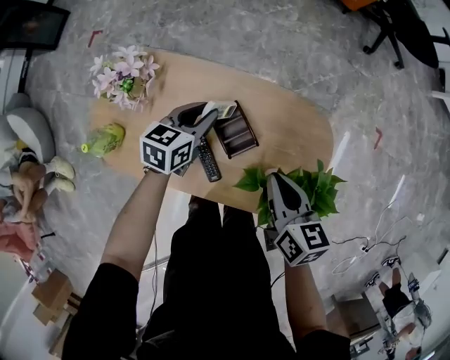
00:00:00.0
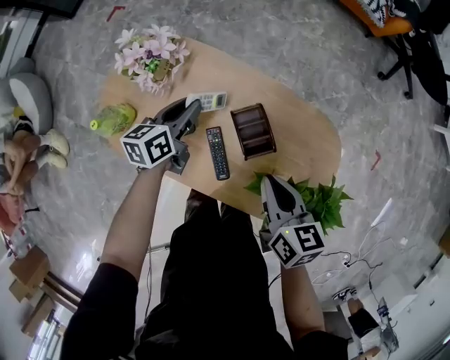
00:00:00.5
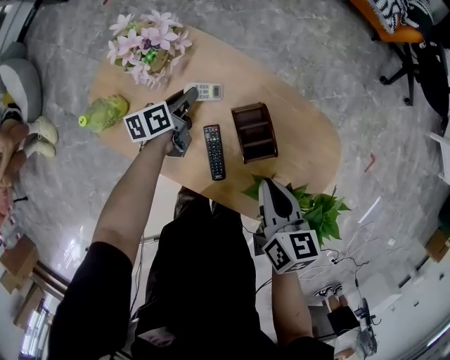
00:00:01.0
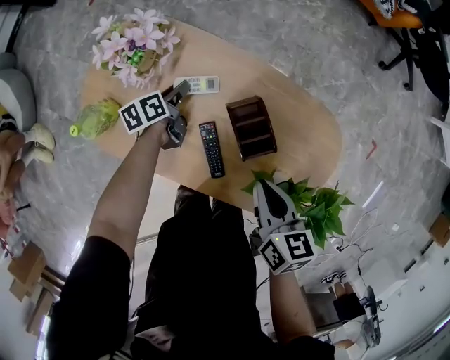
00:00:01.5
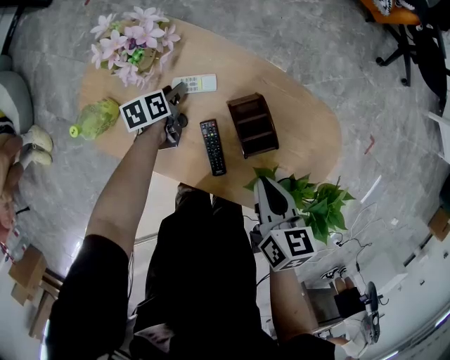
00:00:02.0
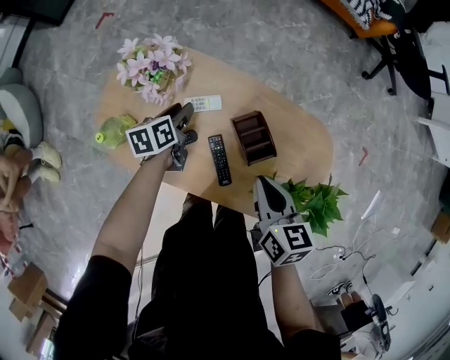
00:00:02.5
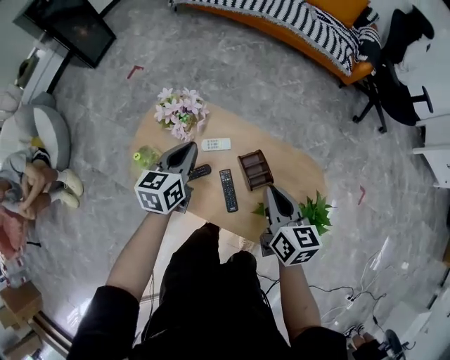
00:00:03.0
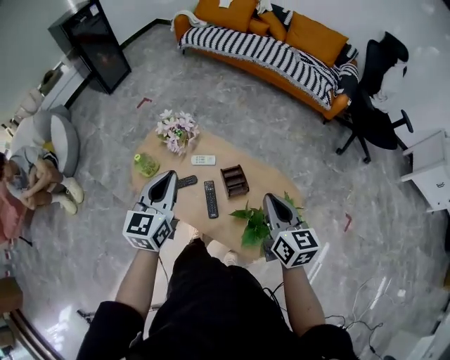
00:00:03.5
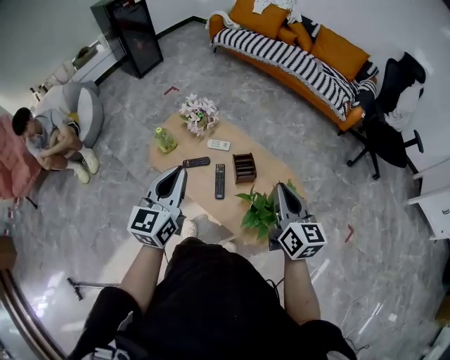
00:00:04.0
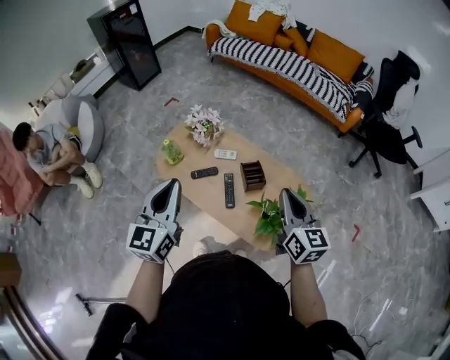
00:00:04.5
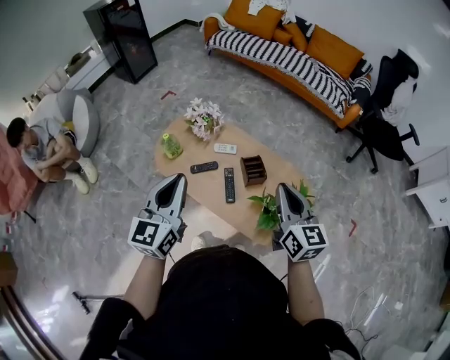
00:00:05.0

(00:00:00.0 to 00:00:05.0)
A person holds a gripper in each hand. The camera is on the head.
00:00:00.0 - 00:00:02.5: The left gripper moves to the left, about 20 cm, and swivels about 40 degrees, while the right gripper heads to the left, covering some 10 cm.
00:00:02.5 - 00:00:05.0: The left gripper travels upward and backward by about 50 cm, points its fingers about 40 degrees further upward, and closes. Meanwhile the right gripper travels upward and backward by roughly 30 cm, and points its fingers roughly 30 degrees further upward.

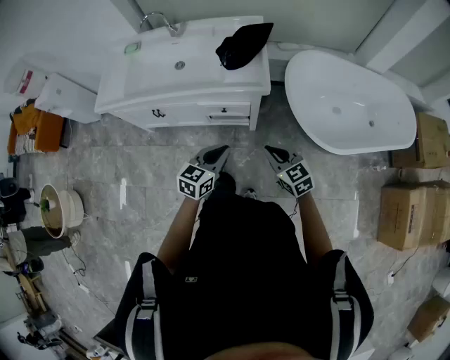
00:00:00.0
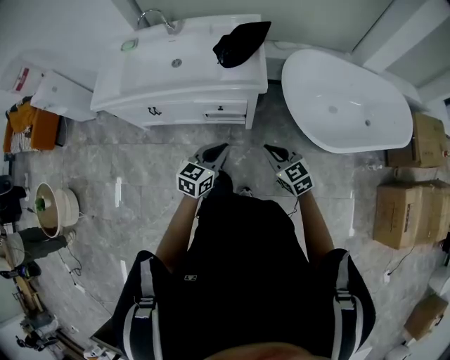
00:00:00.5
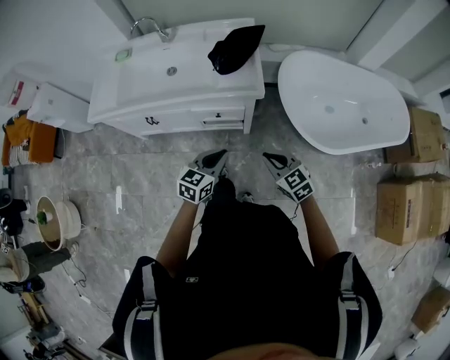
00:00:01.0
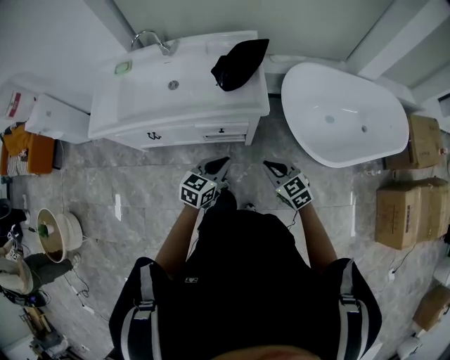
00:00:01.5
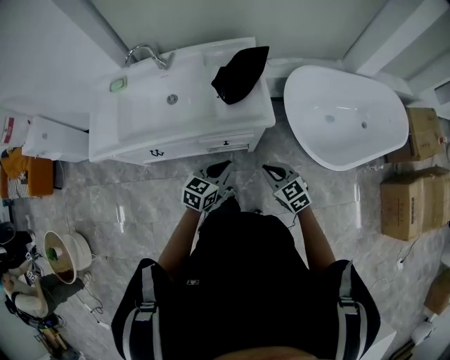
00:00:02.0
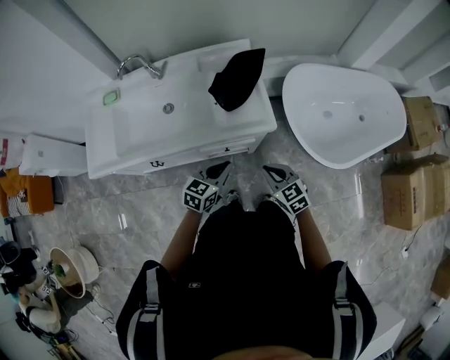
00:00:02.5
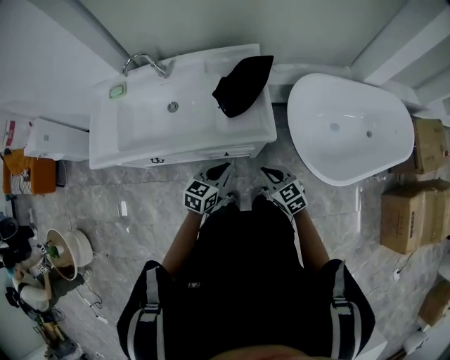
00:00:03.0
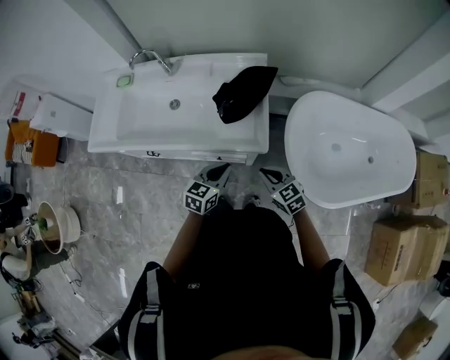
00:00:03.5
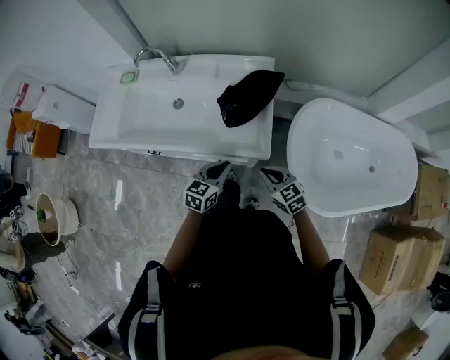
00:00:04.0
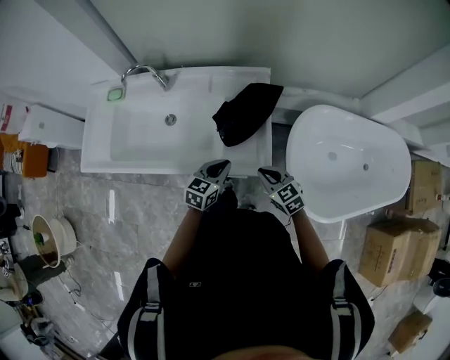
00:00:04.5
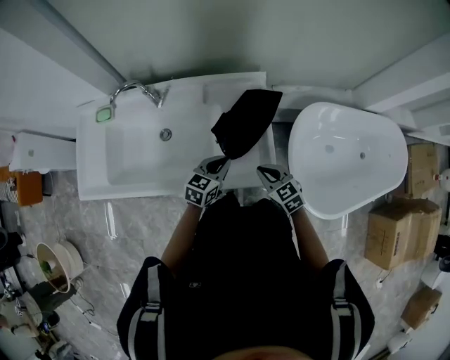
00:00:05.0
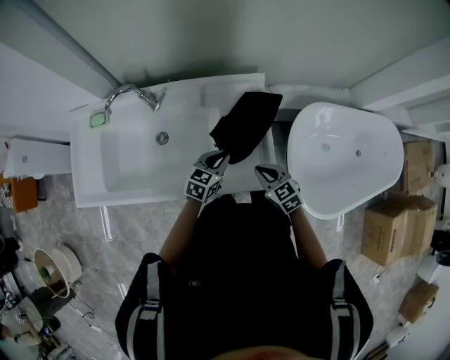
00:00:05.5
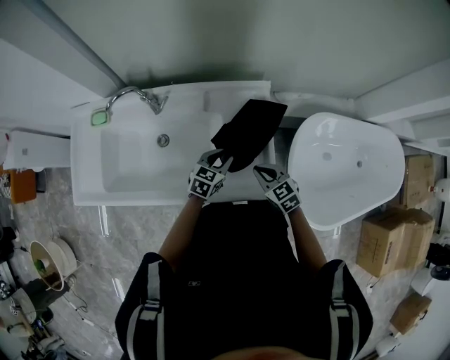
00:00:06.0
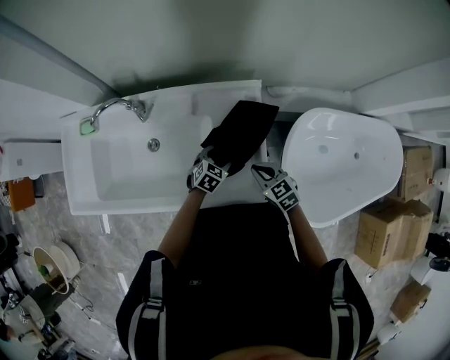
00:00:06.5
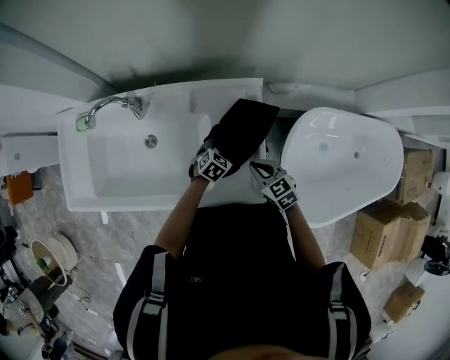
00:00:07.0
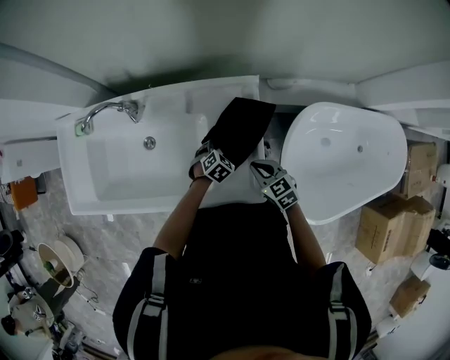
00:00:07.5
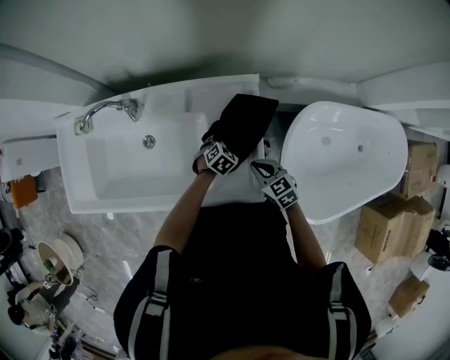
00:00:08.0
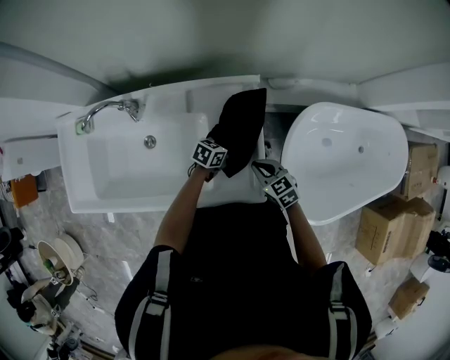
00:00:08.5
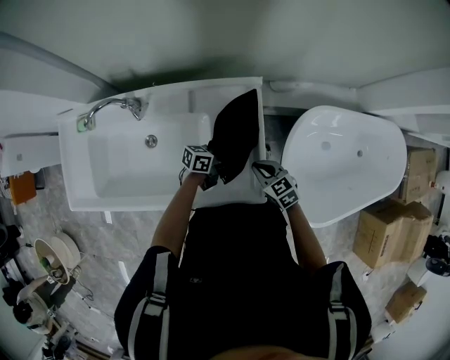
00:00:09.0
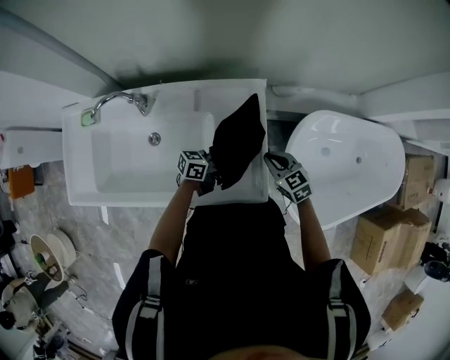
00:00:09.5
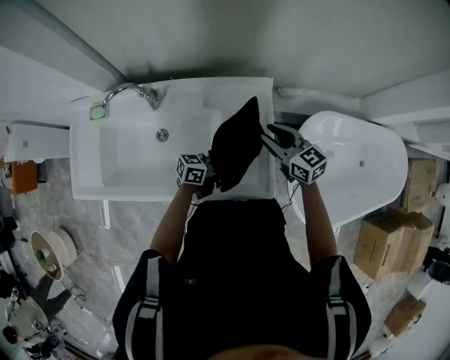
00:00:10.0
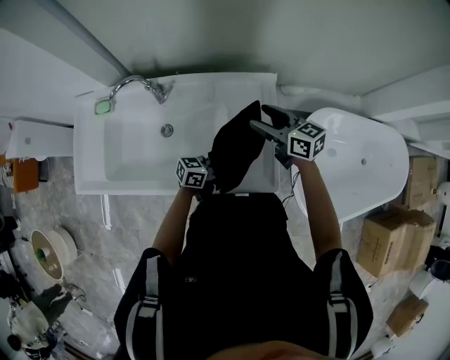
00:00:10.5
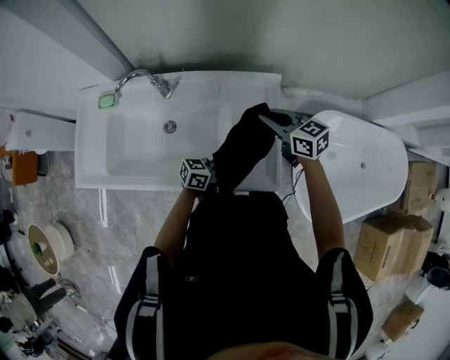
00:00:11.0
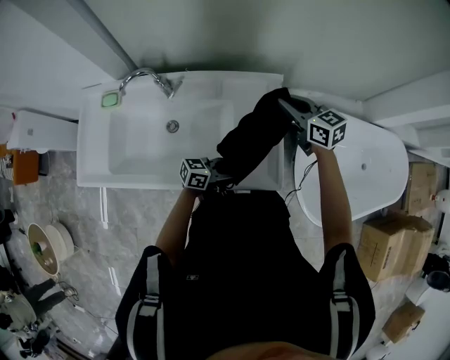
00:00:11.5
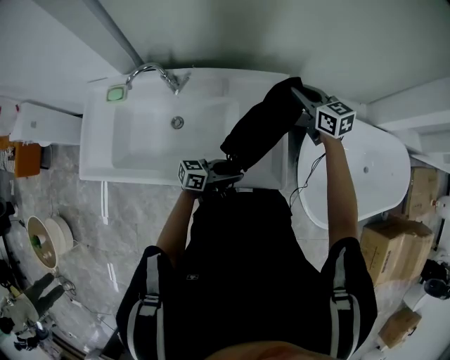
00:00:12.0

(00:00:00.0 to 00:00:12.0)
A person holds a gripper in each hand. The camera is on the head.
00:00:00.0 - 00:00:02.0: Both grippers travel together forward and to the left, some 15 cm.
00:00:02.0 - 00:00:04.0: The grippers both shift forward and to the right by about 15 cm.
00:00:04.0 - 00:00:06.0: Both grippers move forward, approximately 20 cm.
00:00:06.0 - 00:00:08.0: The right gripper ends up some 5 cm from where it was, while the left gripper is displaced downward, to the right and forward by some 15 cm, rotates some 30 degrees, and opens its fingers.
00:00:08.0 - 00:00:10.0: The grippers both shift upward by roughly 15 cm. The right gripper swivels approximately 20 degrees, and opens its fingers. The left gripper points its fingers approximately 50 degrees further upward.
00:00:10.0 - 00:00:12.0: The left gripper changes place by some 10 cm; the right gripper moves approximately 10 cm, and closes its fingers.

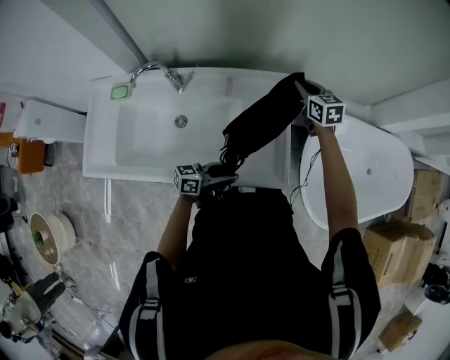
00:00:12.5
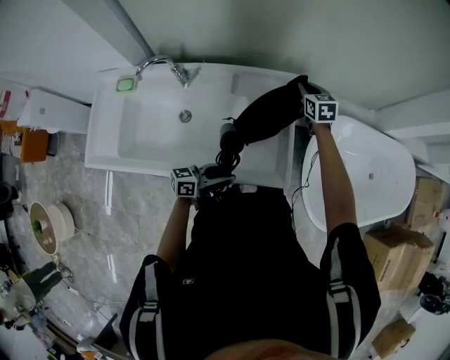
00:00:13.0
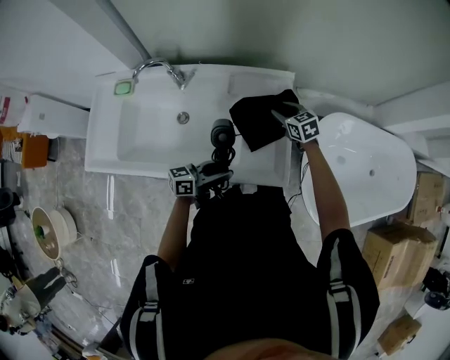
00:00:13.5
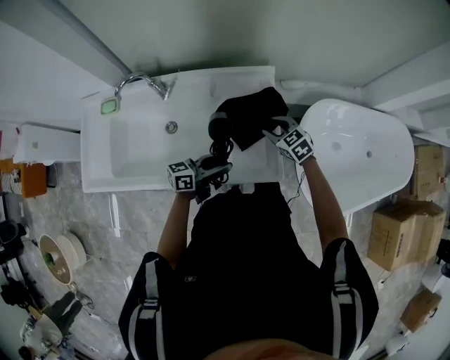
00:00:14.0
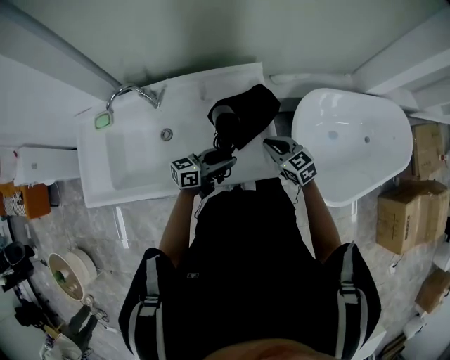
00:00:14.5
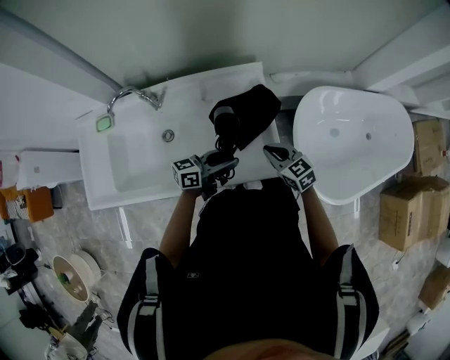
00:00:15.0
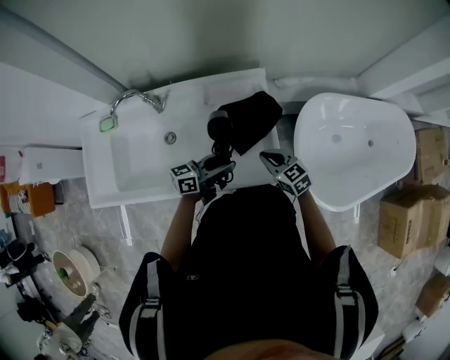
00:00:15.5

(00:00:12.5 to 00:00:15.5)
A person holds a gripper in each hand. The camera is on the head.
00:00:12.5 - 00:00:14.0: The right gripper goes roughly 20 cm backward and downward, turns by roughly 20 degrees, and opens.
00:00:14.0 - 00:00:15.5: The right gripper shifts roughly 10 cm backward, and closes its fingers.

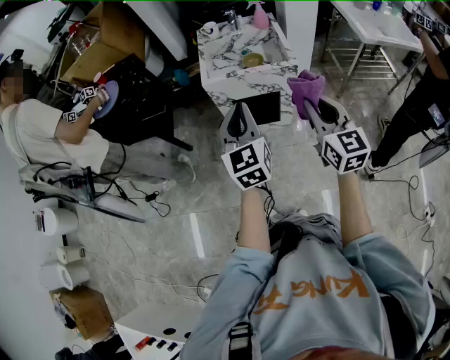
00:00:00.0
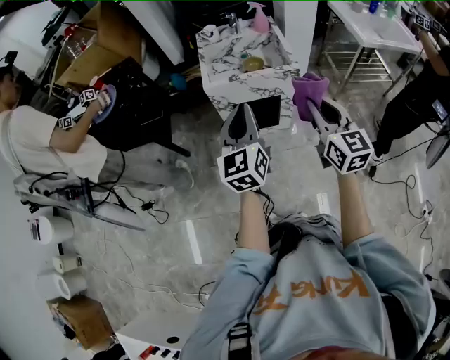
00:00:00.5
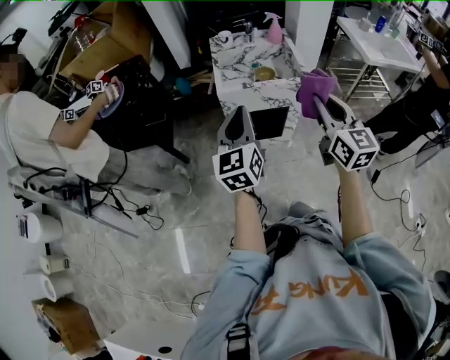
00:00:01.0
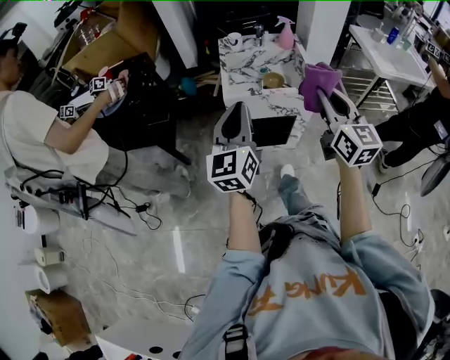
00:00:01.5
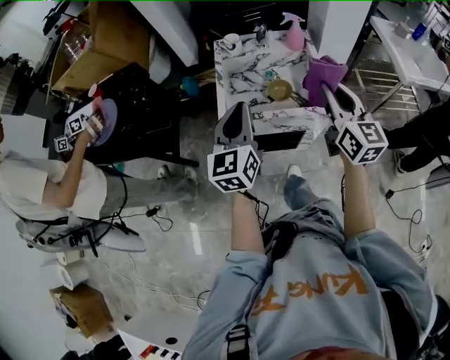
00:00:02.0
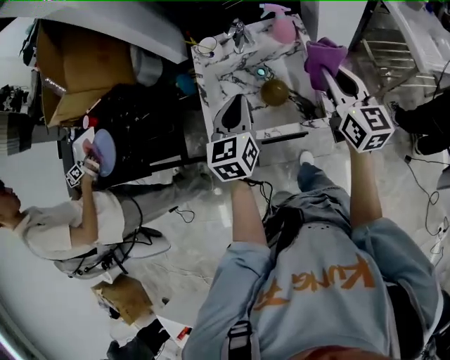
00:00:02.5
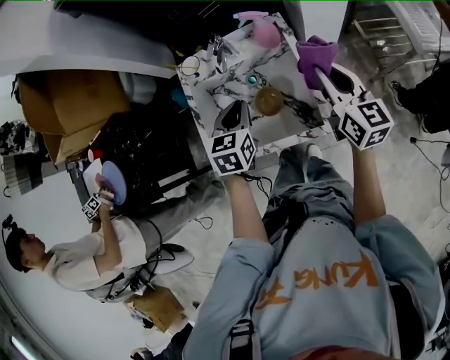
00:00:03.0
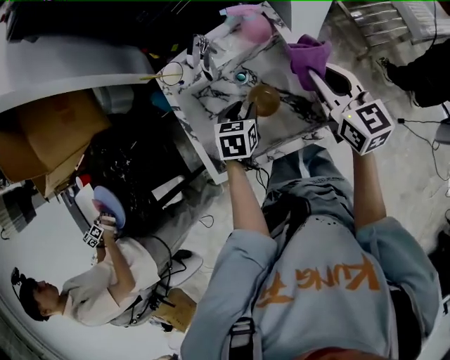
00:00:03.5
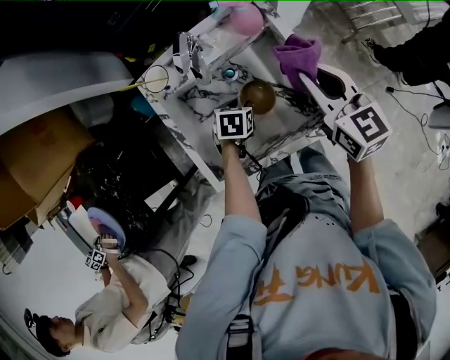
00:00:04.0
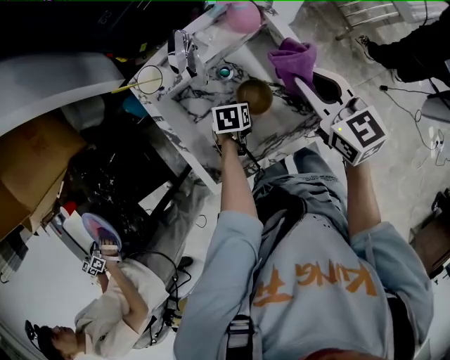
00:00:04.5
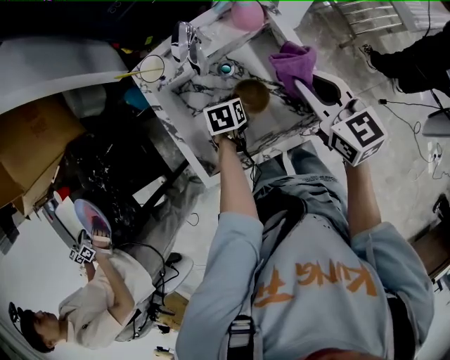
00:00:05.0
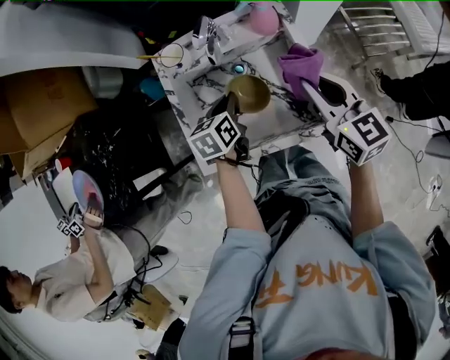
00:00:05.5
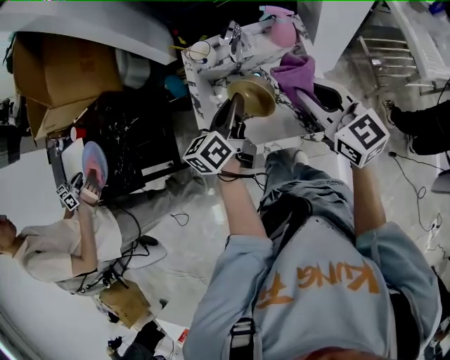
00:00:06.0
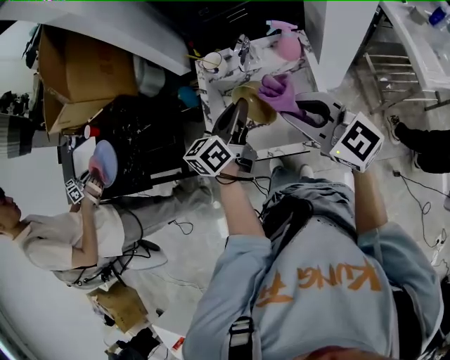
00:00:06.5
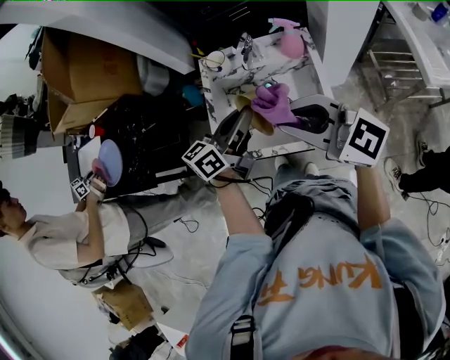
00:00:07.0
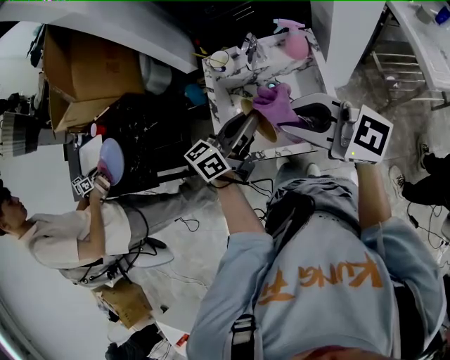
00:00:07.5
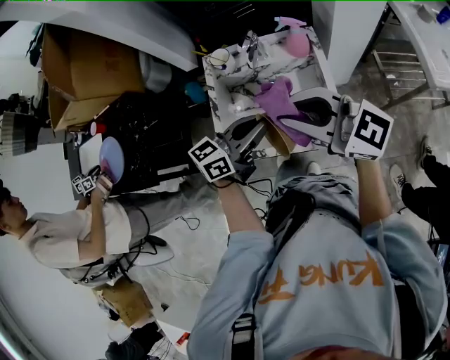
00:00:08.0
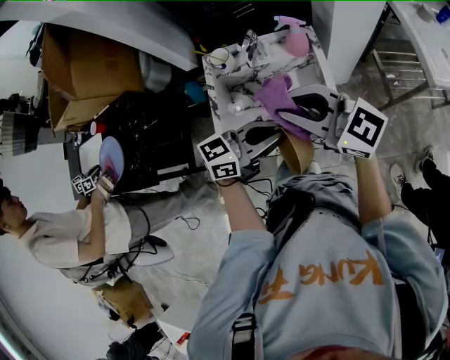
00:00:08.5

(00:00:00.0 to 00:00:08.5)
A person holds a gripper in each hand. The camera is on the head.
00:00:00.0 - 00:00:02.0: Both grippers move forward, some 30 cm.
00:00:02.0 - 00:00:04.0: The left gripper shifts some 35 cm downward, tips its fingers downward by about 60 degrees, and opens. The right gripper moves approximately 25 cm, and swivels about 20 degrees.
00:00:04.0 - 00:00:06.5: The right gripper ends up about 20 cm from where it was, and swivels approximately 50 degrees. The left gripper goes roughly 30 cm upward, angles its fingers upward, by roughly 60 degrees, and closes.
00:00:06.5 - 00:00:08.5: The left gripper changes place by about 10 cm, and swivels roughly 40 degrees.
